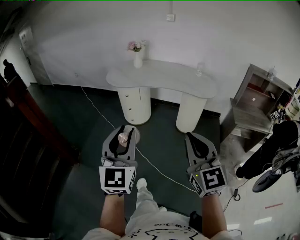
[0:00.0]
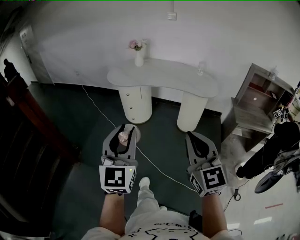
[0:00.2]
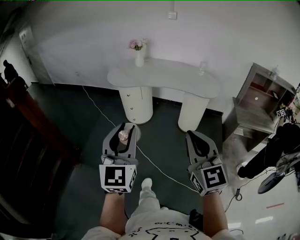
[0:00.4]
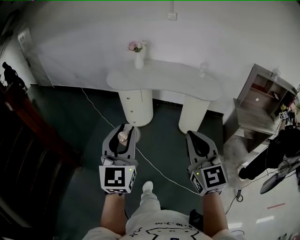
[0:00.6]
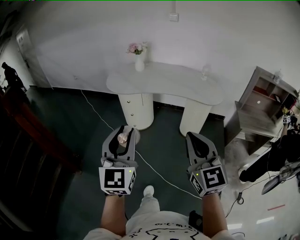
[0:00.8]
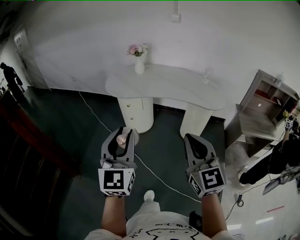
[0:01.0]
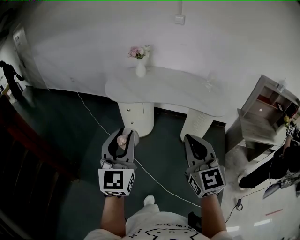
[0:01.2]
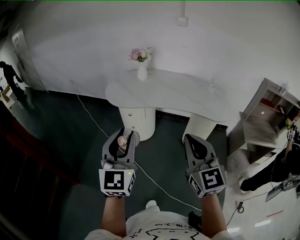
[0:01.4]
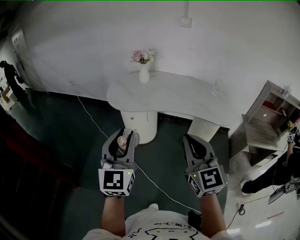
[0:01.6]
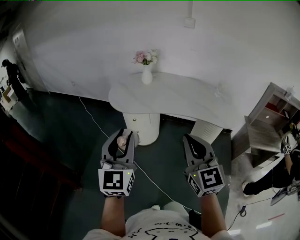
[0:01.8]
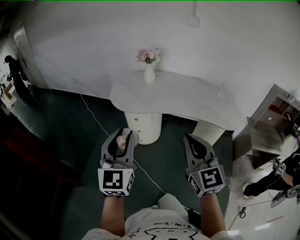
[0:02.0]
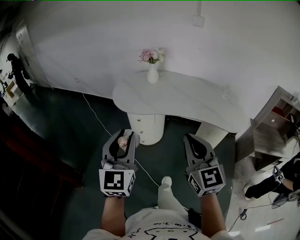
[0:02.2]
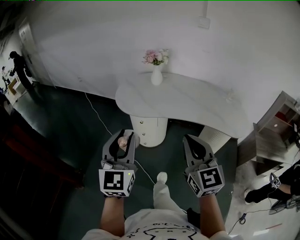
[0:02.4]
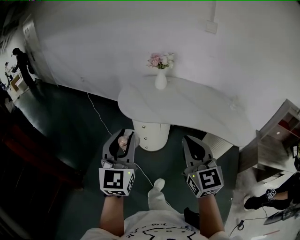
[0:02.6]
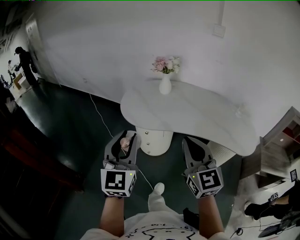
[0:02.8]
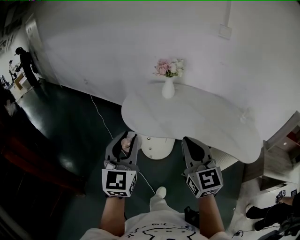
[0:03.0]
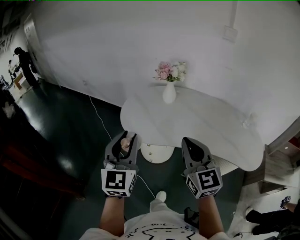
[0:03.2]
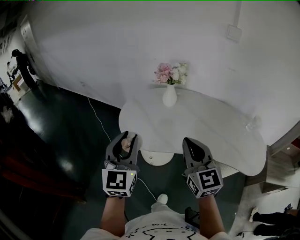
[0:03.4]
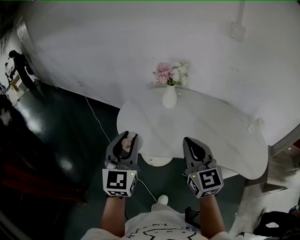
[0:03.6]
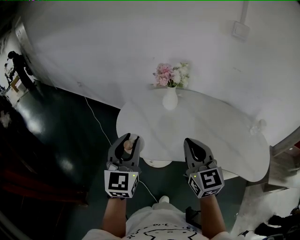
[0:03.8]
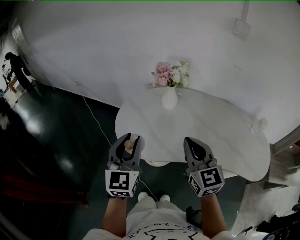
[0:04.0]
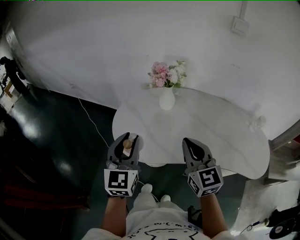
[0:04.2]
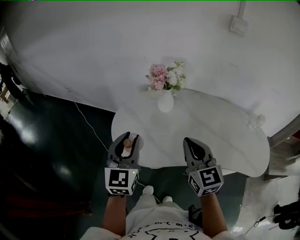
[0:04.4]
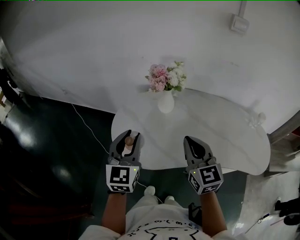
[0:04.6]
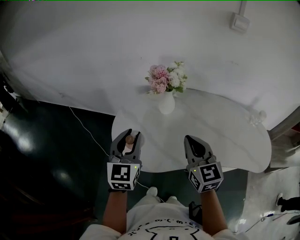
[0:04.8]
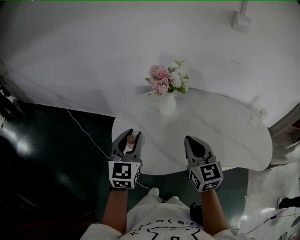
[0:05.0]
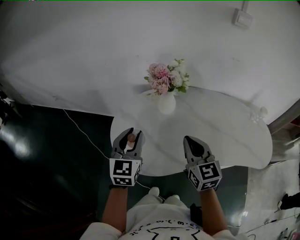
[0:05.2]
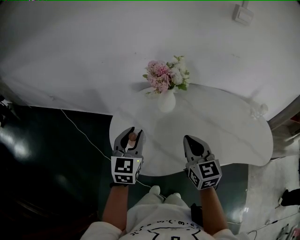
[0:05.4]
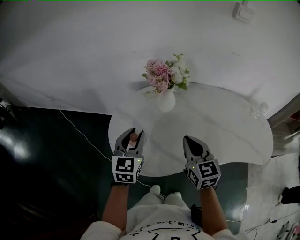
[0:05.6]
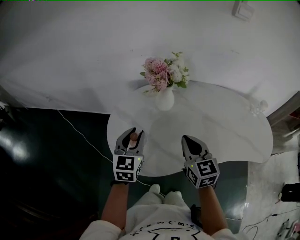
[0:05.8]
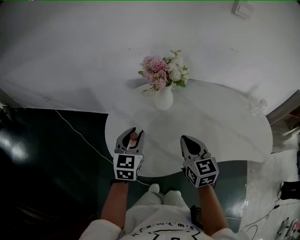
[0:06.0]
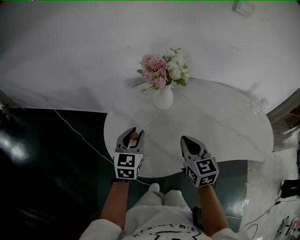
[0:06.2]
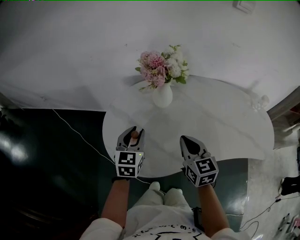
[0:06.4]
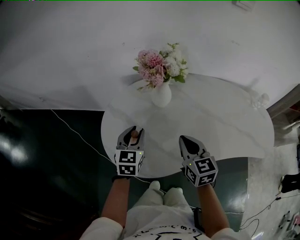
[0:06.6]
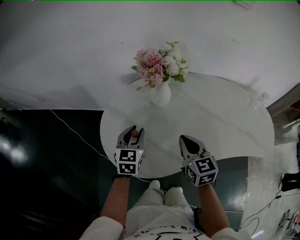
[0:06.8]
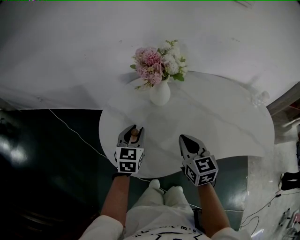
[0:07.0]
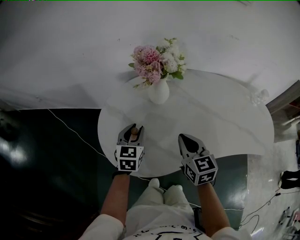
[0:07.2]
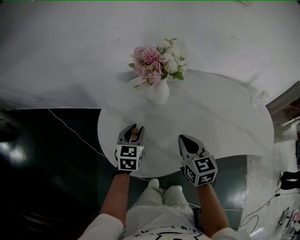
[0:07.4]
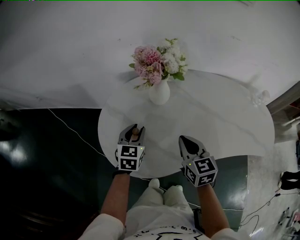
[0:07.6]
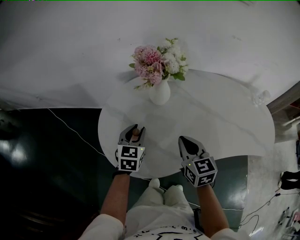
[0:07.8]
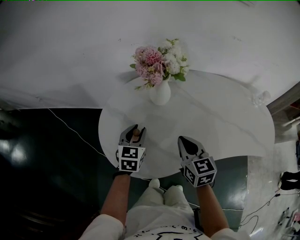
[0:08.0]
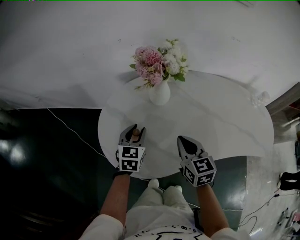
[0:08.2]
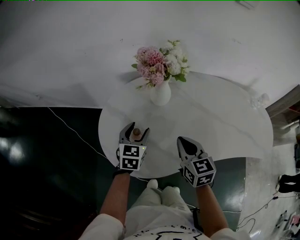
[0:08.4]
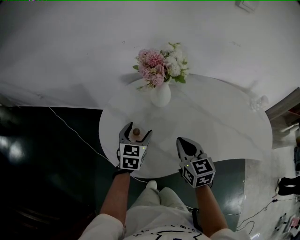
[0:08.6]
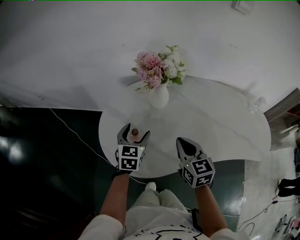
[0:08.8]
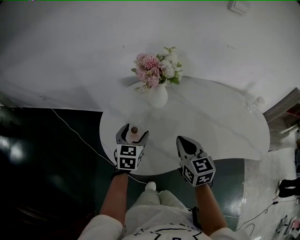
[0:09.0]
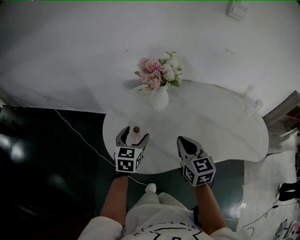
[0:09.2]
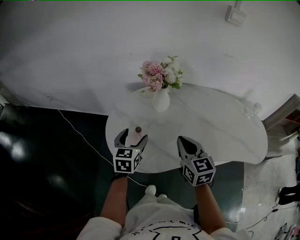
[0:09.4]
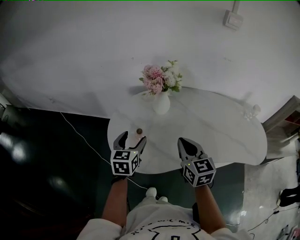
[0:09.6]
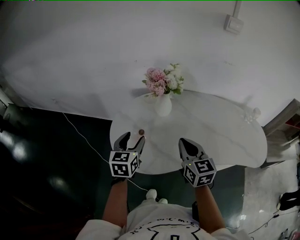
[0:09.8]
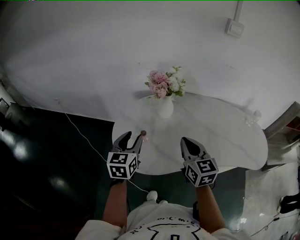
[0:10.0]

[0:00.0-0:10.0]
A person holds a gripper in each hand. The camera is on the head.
0:00.0 to 0:01.4: Both grippers travel together forward, about 30 cm.
0:01.4 to 0:02.8: Both grippers travel together forward, approximately 25 cm.
0:02.8 to 0:04.2: Both grippers move forward, approximately 30 cm.
0:04.2 to 0:05.8: The left gripper goes some 20 cm forward and downward, and changes its angle by approximately 20 degrees, while the right gripper is displaced downward and forward by about 15 cm.
0:05.8 to 0:07.2: The left gripper heads downward, covering roughly 10 cm, while the right gripper is displaced downward by roughly 5 cm.
0:07.2 to 0:08.6: The left gripper opens up.
0:08.6 to 0:10.0: The left gripper heads upward and backward, covering approximately 20 cm, and closes its fingers; the right gripper heads upward, covering approximately 10 cm.

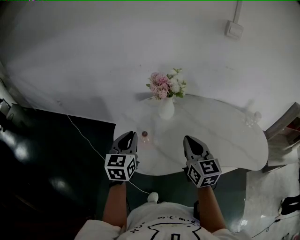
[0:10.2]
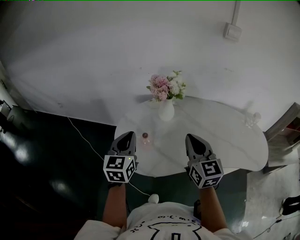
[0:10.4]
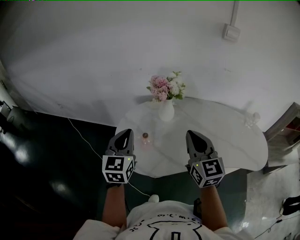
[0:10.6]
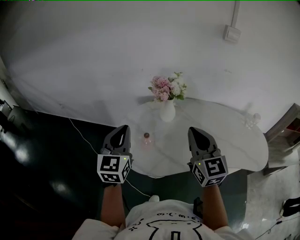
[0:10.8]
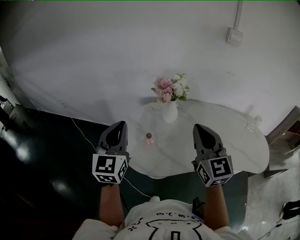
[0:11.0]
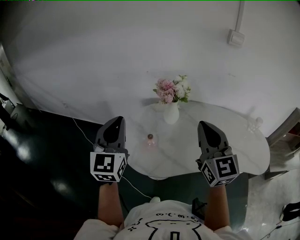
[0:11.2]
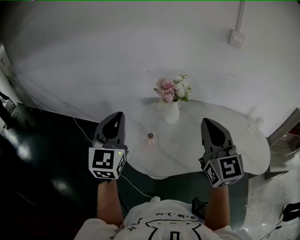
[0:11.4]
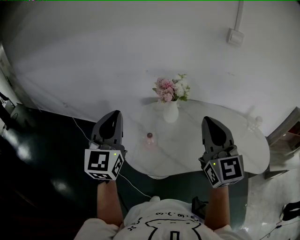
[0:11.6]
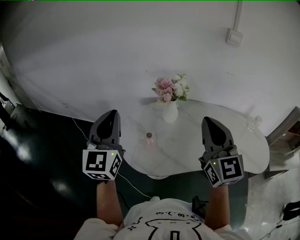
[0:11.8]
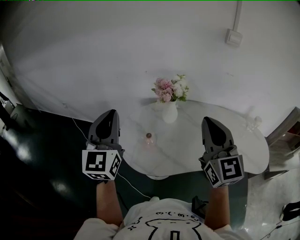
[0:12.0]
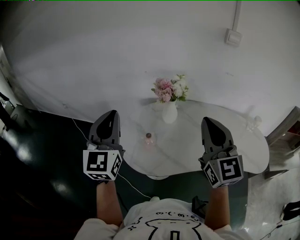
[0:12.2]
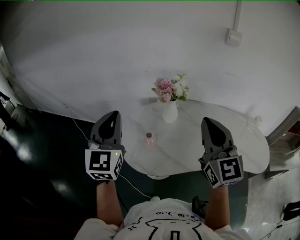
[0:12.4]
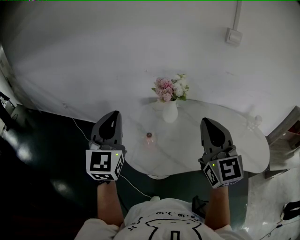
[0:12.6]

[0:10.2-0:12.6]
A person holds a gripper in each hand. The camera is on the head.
0:10.2 to 0:11.4: Both grippers move upward, some 15 cm. The right gripper rotates about 20 degrees. Meanwhile the left gripper swivels some 30 degrees.
0:11.4 to 0:12.6: The grippers make only small movements.

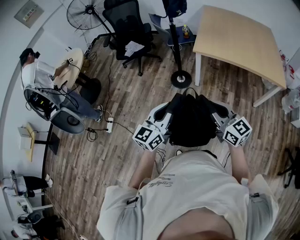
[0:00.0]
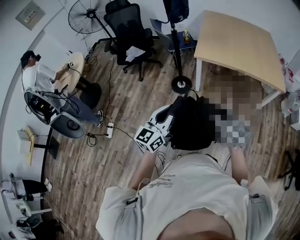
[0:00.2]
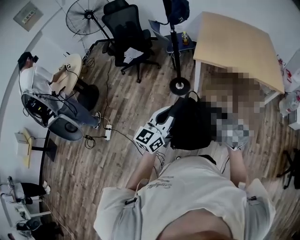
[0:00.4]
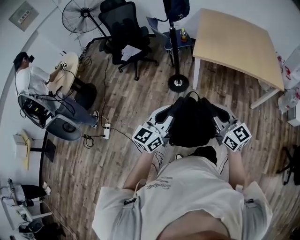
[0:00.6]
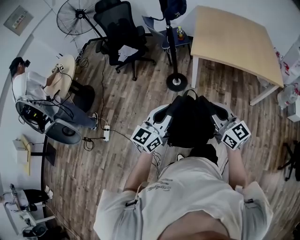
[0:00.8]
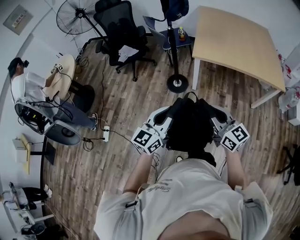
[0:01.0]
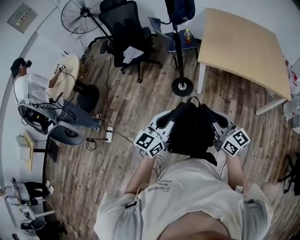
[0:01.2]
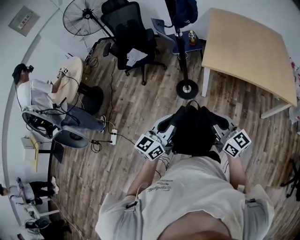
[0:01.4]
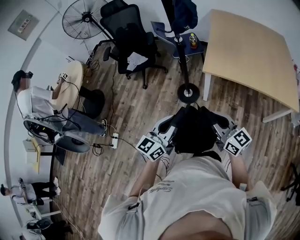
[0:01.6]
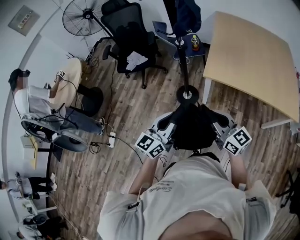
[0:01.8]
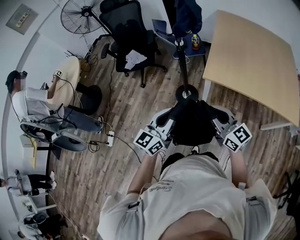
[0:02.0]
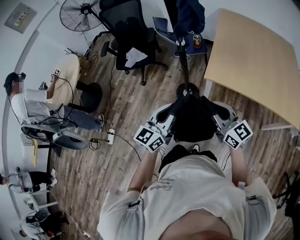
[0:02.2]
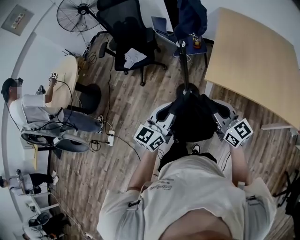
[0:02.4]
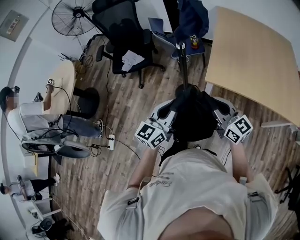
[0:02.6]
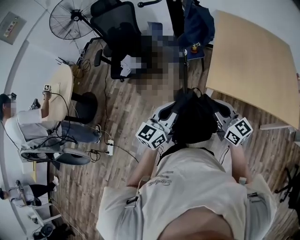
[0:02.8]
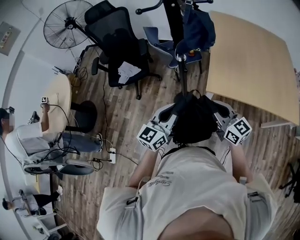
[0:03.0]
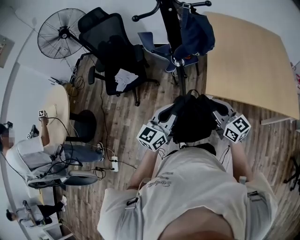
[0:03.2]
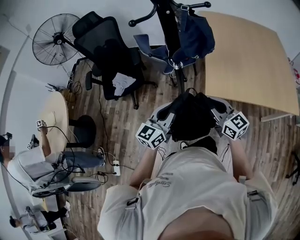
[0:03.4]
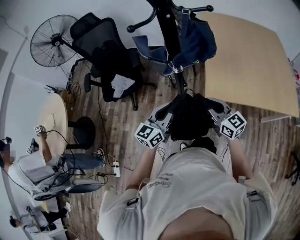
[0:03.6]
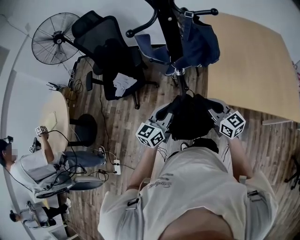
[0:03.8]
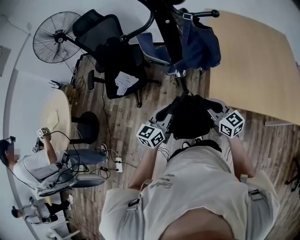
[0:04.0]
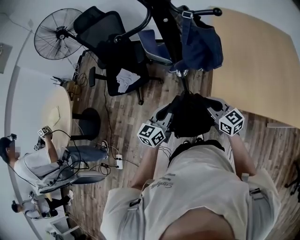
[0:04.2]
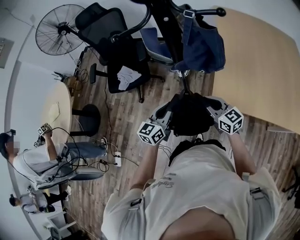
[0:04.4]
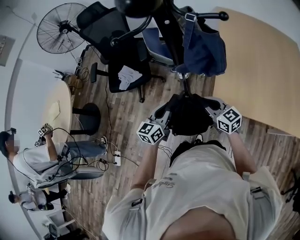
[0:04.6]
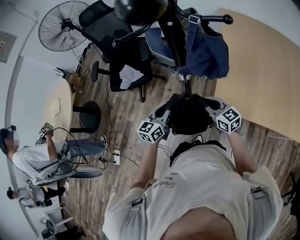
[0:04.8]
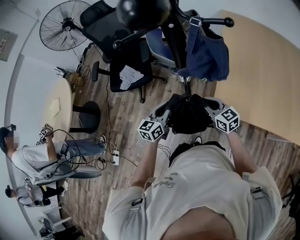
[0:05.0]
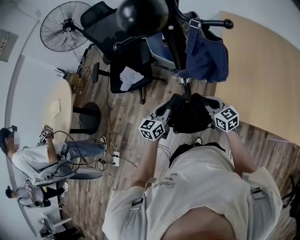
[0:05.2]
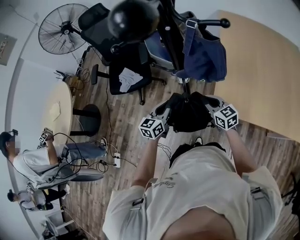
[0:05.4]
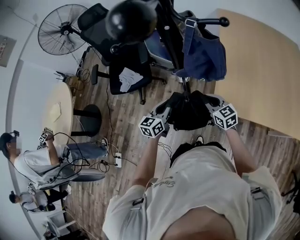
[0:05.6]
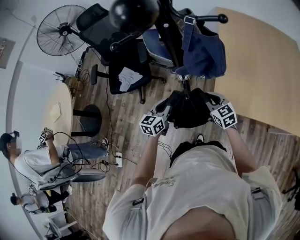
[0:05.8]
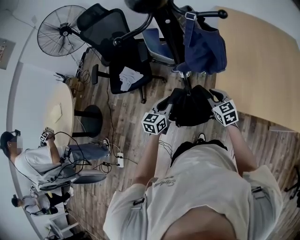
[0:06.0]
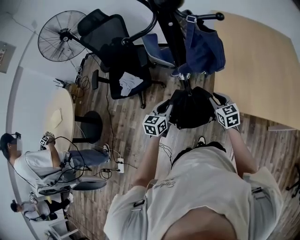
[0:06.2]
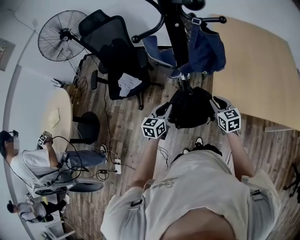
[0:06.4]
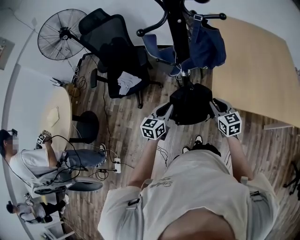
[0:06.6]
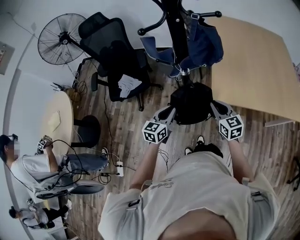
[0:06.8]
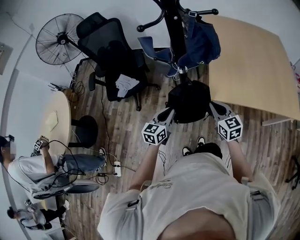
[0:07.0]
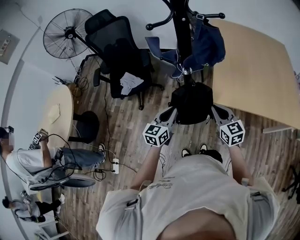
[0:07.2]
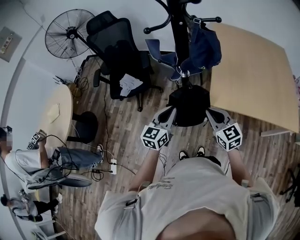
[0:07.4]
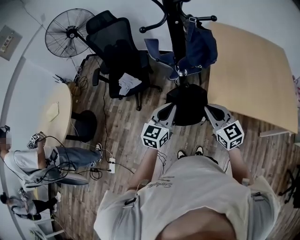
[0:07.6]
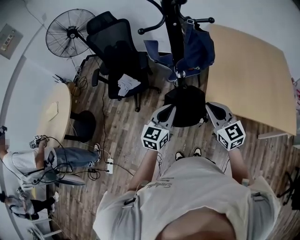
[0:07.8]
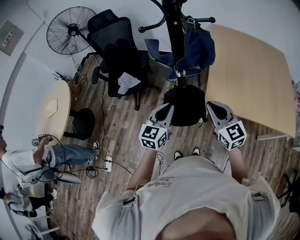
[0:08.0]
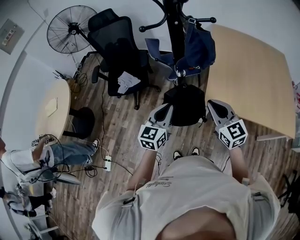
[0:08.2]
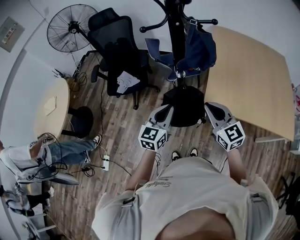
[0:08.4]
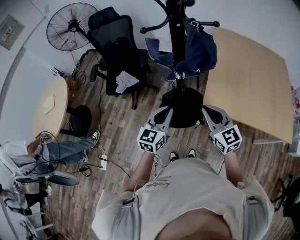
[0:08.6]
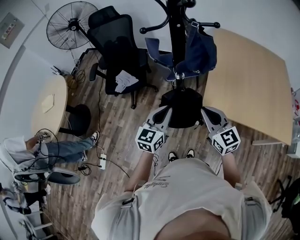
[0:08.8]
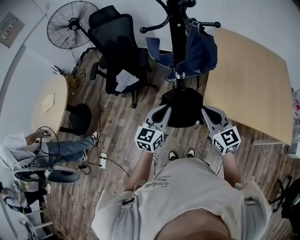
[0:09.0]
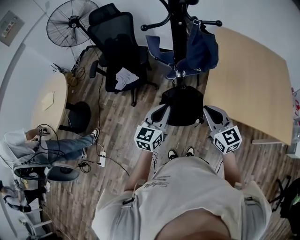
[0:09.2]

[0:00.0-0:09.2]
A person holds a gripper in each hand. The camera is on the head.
0:00.0 to 0:01.6: Both grippers move forward, roughly 20 cm.
0:01.6 to 0:03.0: The grippers both shift forward by about 25 cm.
0:03.0 to 0:04.6: The two grippers go about 20 cm forward and downward.
0:04.6 to 0:06.2: The right gripper changes place by approximately 5 cm, and changes its angle by some 30 degrees.
0:06.2 to 0:07.6: Both grippers move upward and backward, roughly 20 cm. The right gripper turns by roughly 20 degrees.
0:07.6 to 0:09.2: The grippers stay close to where they were, moving slightly.

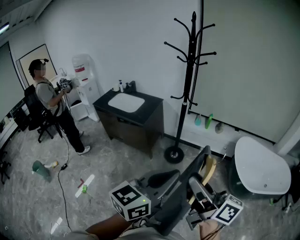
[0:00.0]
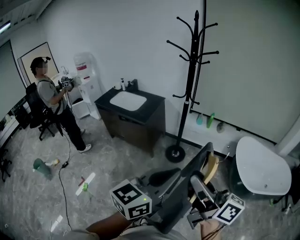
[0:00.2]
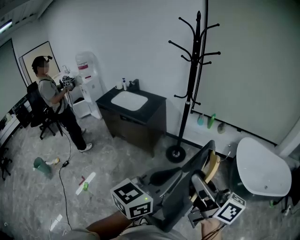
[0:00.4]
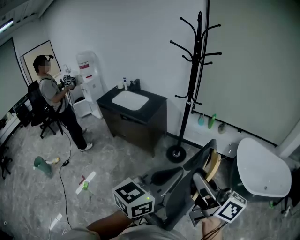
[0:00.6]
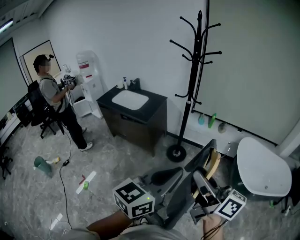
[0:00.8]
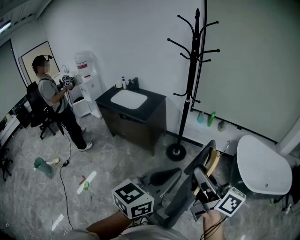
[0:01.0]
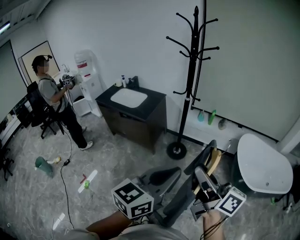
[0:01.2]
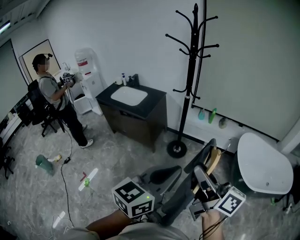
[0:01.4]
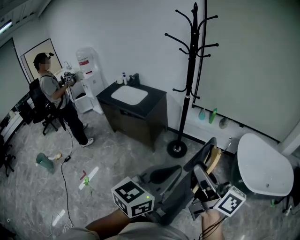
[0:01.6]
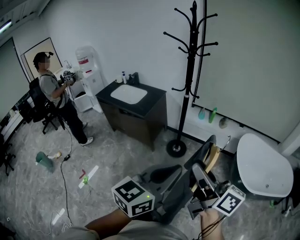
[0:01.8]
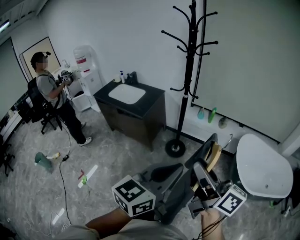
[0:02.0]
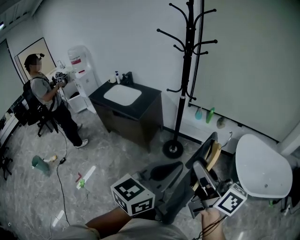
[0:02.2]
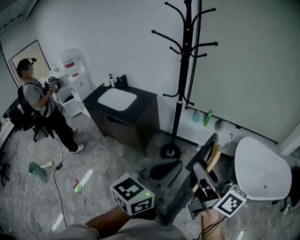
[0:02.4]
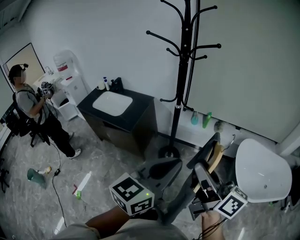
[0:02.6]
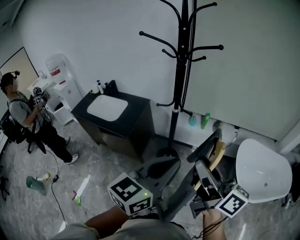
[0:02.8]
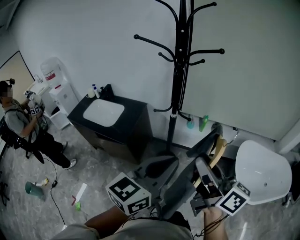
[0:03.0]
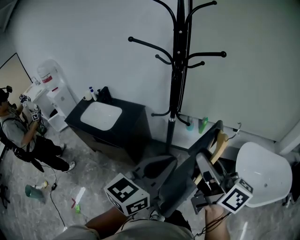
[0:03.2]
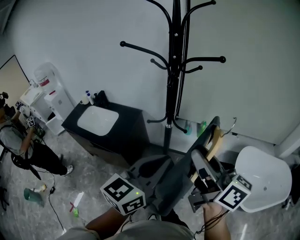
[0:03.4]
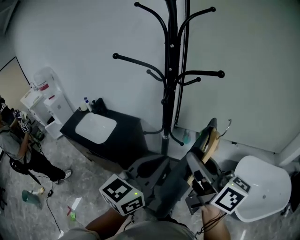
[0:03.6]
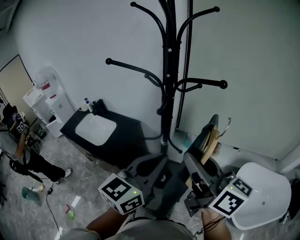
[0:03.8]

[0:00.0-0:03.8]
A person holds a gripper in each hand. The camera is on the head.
0:00.0 to 0:01.2: The grippers stay close to where they were, moving slightly.
0:01.2 to 0:02.6: Both grippers move forward, about 20 cm.
0:02.6 to 0:03.8: Both grippers move forward, some 30 cm.
